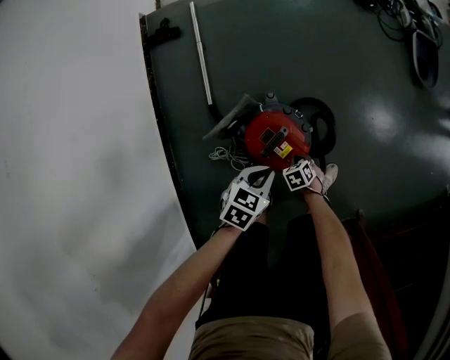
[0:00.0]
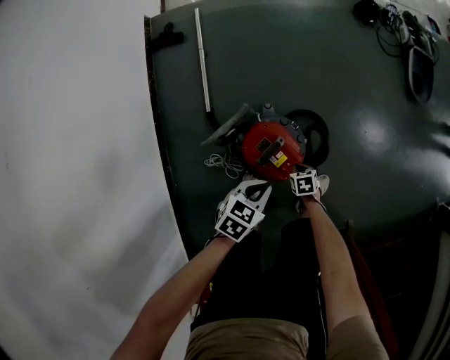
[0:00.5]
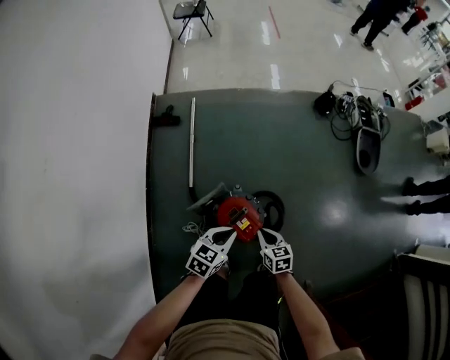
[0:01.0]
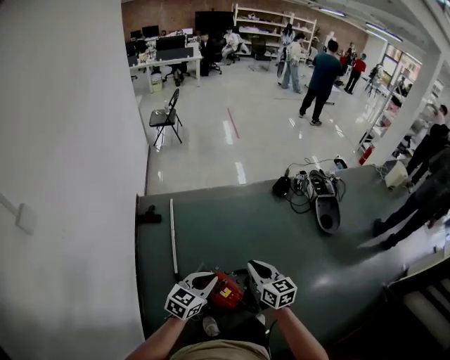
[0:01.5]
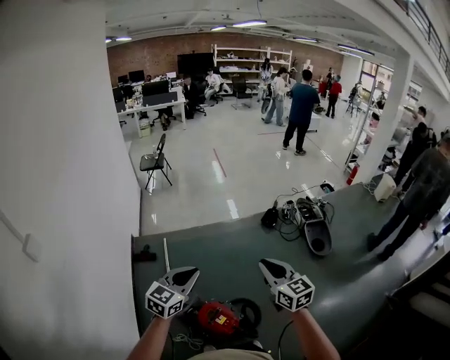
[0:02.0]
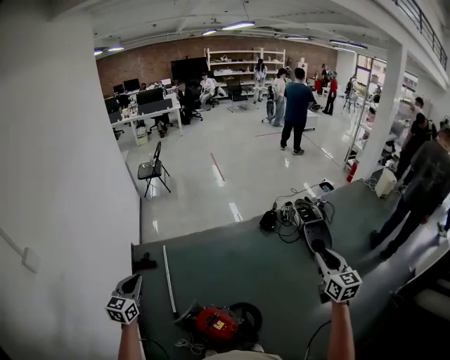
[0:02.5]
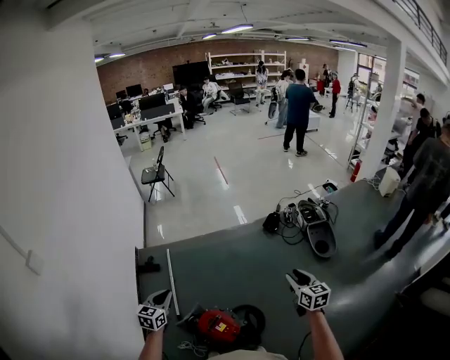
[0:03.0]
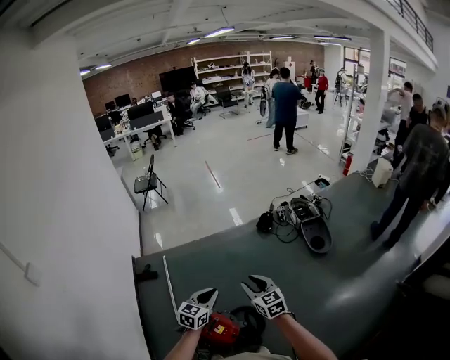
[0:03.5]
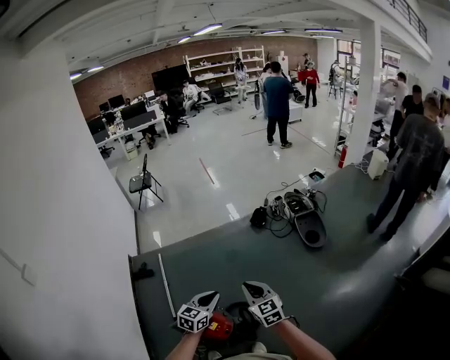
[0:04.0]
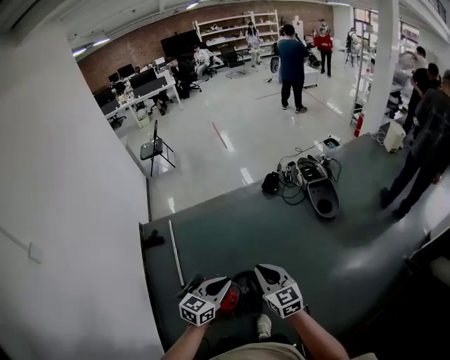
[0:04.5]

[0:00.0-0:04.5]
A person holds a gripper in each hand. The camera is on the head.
0:00.0 to 0:02.0: The two grippers go about 70 cm upward. The right gripper tilts its fingers approximately 70 degrees upward; the left gripper tips its fingers upward by roughly 40 degrees.
0:02.0 to 0:04.5: The right gripper swings left and right, approximately 25 cm each way, with 2 reversals, and opens, then closes again. The left gripper heads to the right, covering some 30 cm.

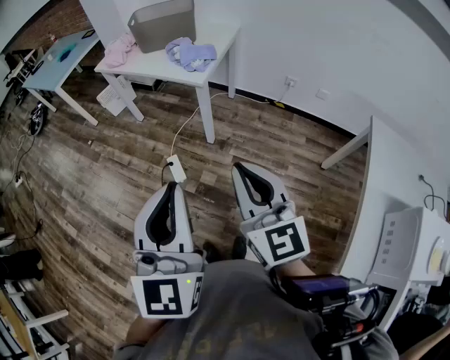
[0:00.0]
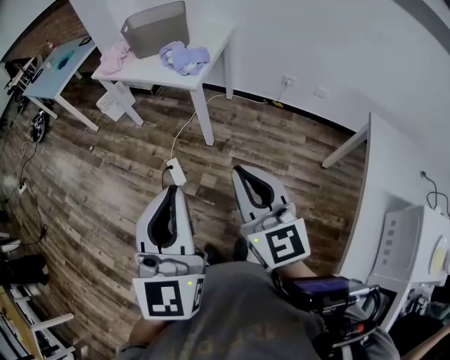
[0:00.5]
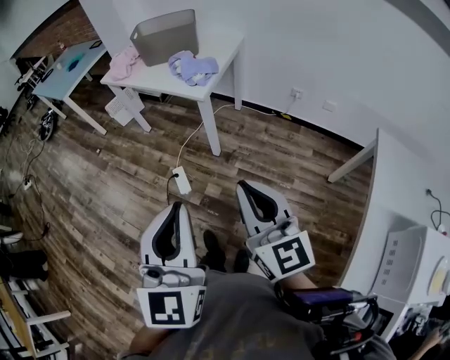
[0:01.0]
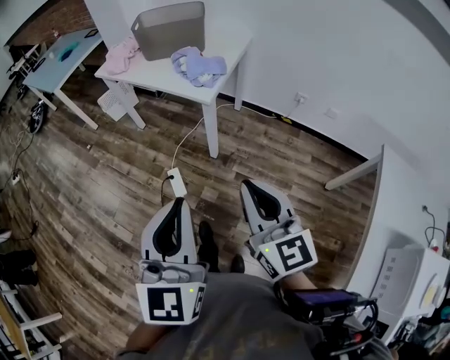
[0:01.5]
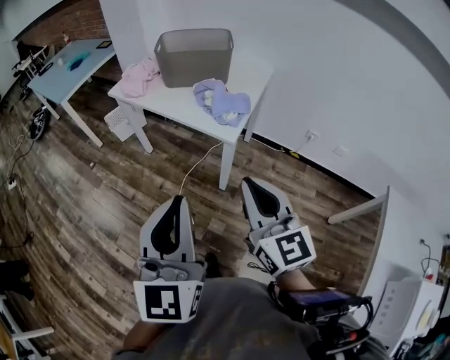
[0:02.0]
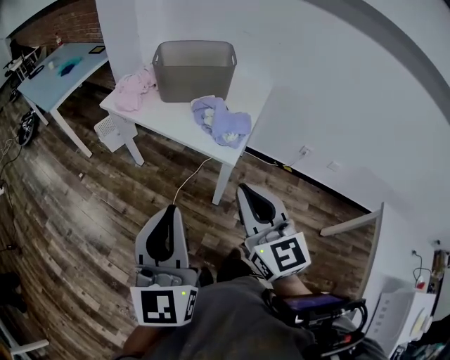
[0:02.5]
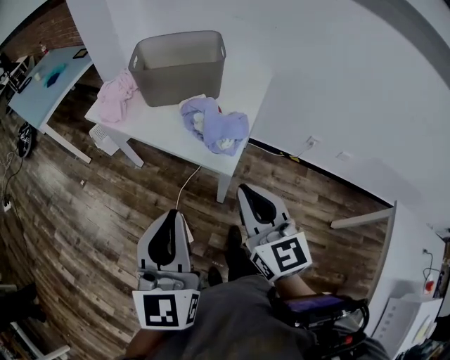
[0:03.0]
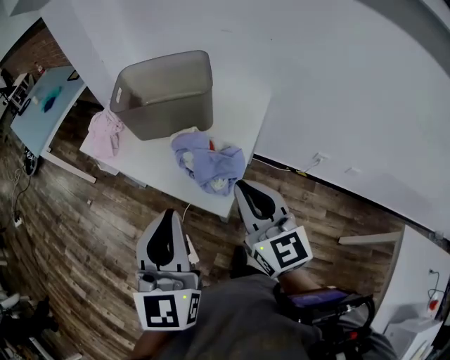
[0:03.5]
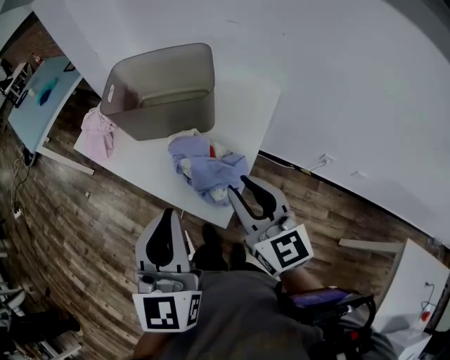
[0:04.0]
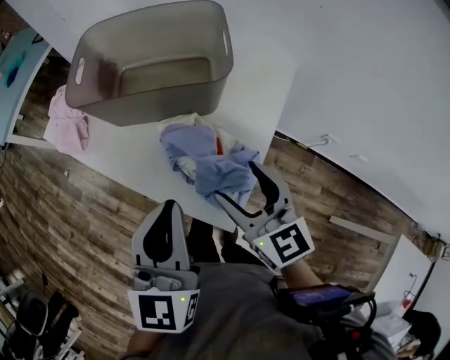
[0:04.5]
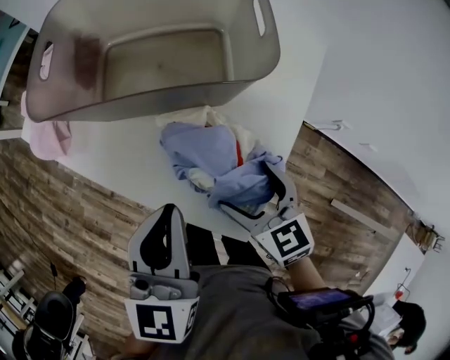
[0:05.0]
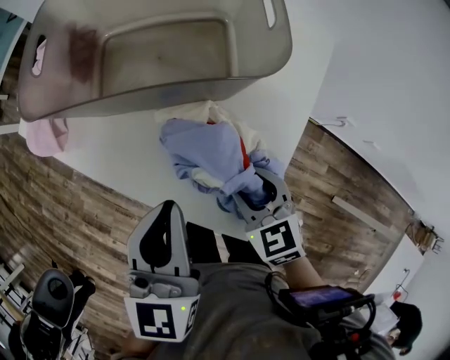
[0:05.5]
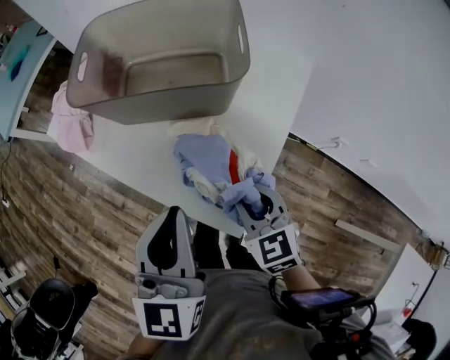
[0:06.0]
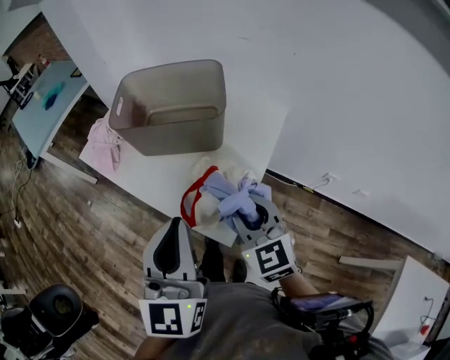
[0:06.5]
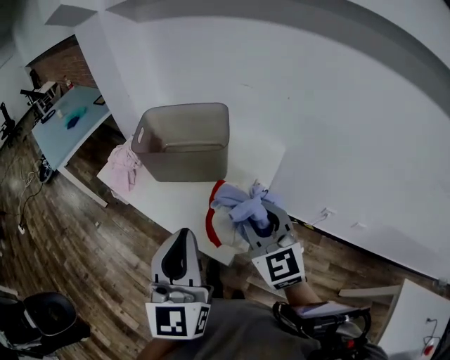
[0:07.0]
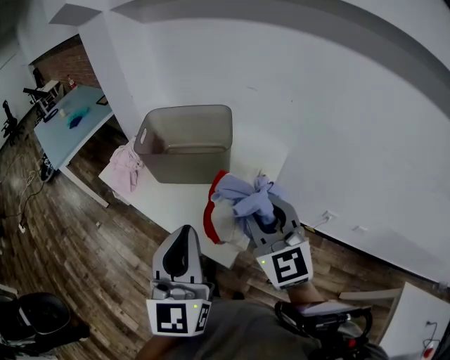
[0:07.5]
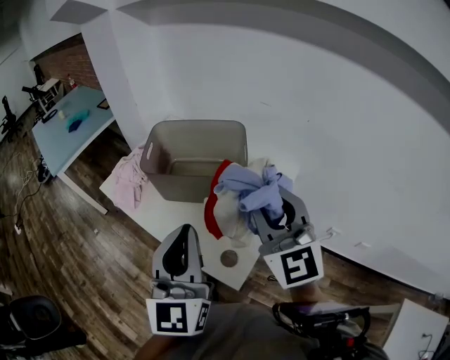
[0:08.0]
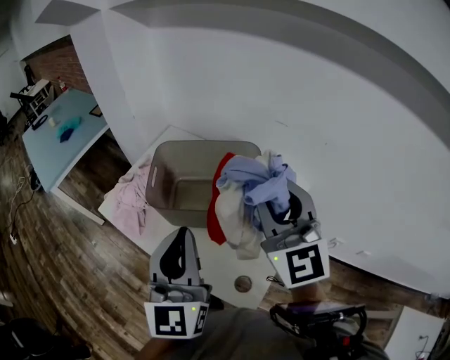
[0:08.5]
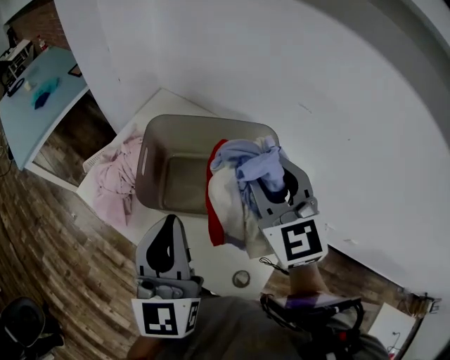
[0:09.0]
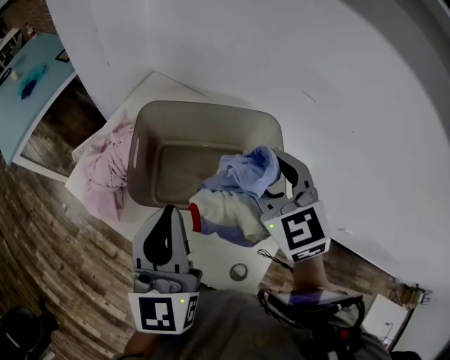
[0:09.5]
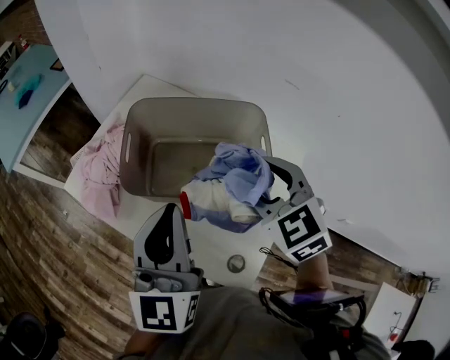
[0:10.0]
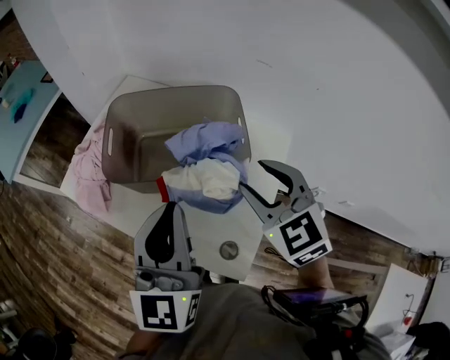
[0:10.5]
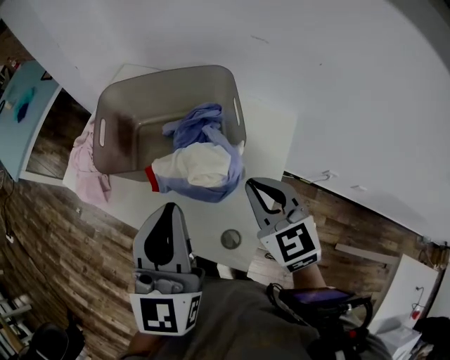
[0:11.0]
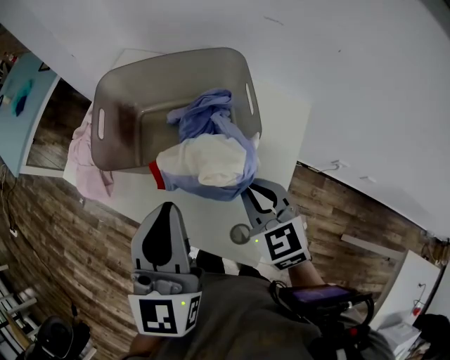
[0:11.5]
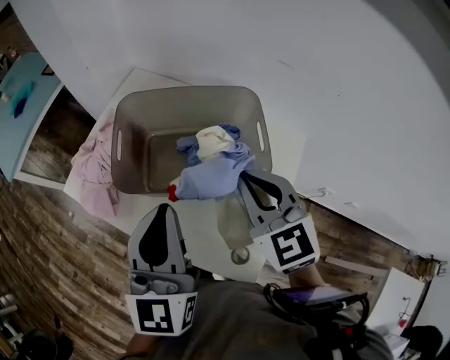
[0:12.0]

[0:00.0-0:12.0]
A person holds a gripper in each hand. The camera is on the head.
0:00.0 to 0:02.0: The grippers both shift forward by roughly 25 cm.
0:02.0 to 0:04.0: The grippers both shift forward by about 35 cm.
0:04.0 to 0:06.0: The right gripper moves downward, roughly 20 cm, points its fingers roughly 30 degrees further downward, and opens, then closes once more. Meanwhile the left gripper is displaced forward and downward by about 15 cm.
0:06.0 to 0:08.0: The right gripper goes some 30 cm upward, and points its fingers about 40 degrees further upward, while the left gripper moves upward, roughly 15 cm, and turns by about 20 degrees.
0:08.0 to 0:10.0: The right gripper goes approximately 20 cm forward and downward, and tips its fingers downward by some 40 degrees; the left gripper shifts approximately 20 cm forward.
0:10.0 to 0:12.0: The right gripper moves about 10 cm downward and comes back, and closes its fingers.

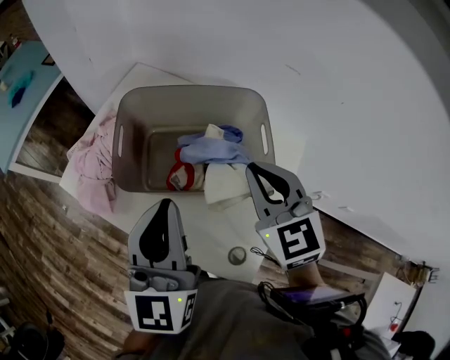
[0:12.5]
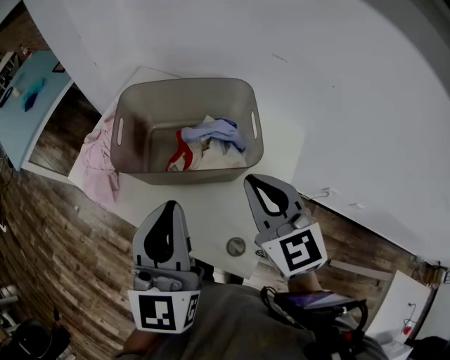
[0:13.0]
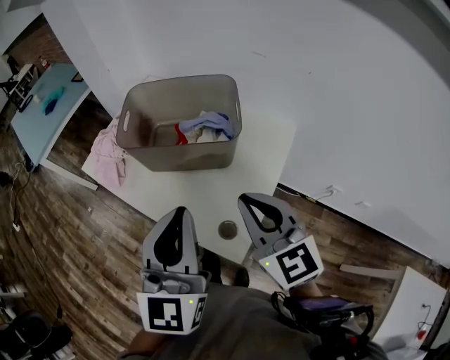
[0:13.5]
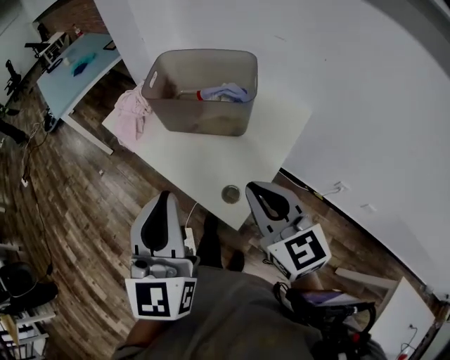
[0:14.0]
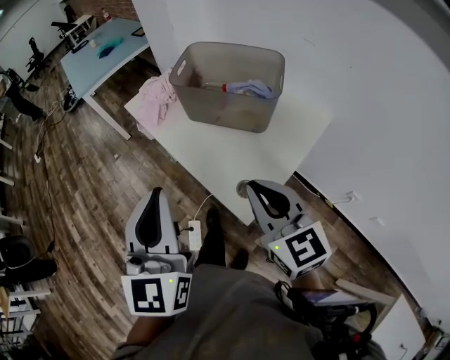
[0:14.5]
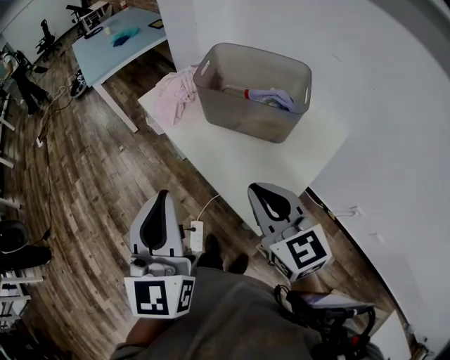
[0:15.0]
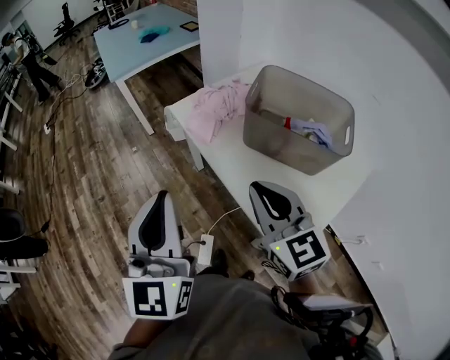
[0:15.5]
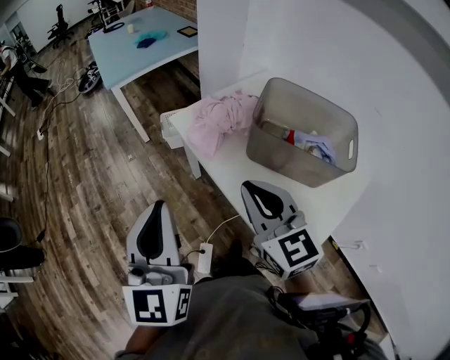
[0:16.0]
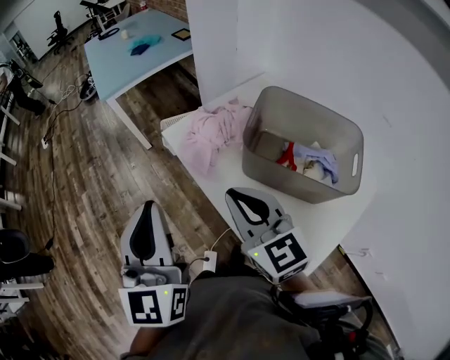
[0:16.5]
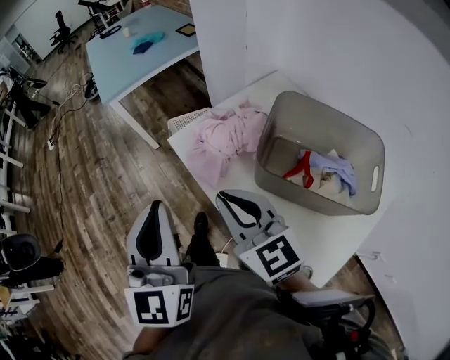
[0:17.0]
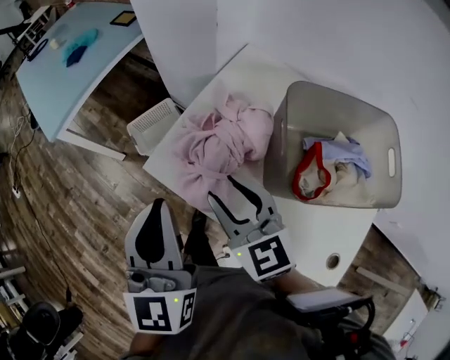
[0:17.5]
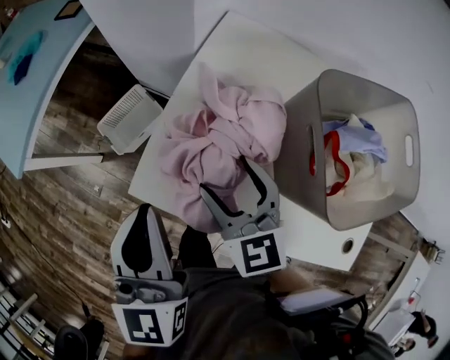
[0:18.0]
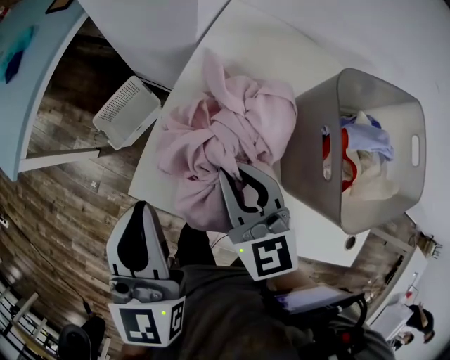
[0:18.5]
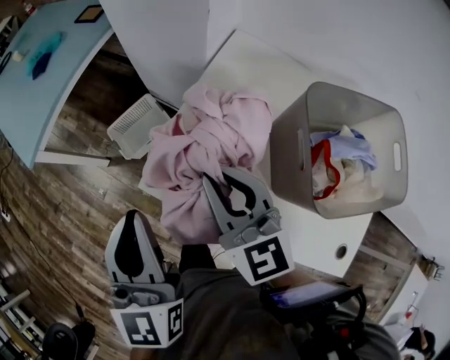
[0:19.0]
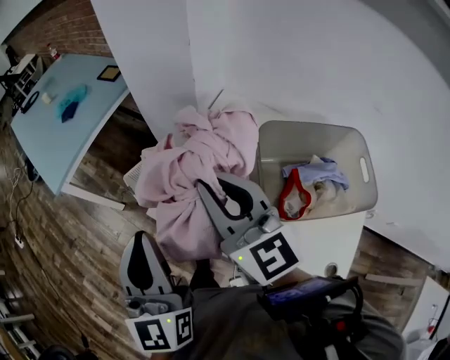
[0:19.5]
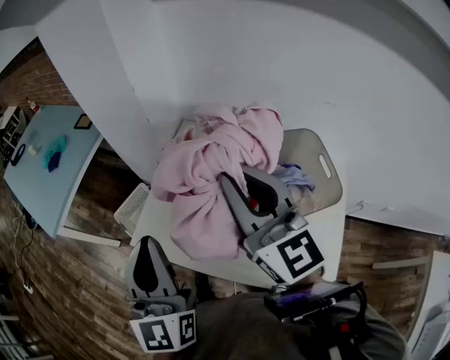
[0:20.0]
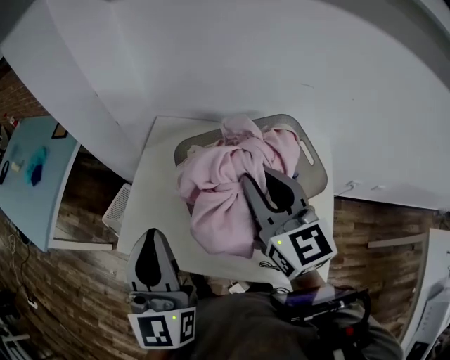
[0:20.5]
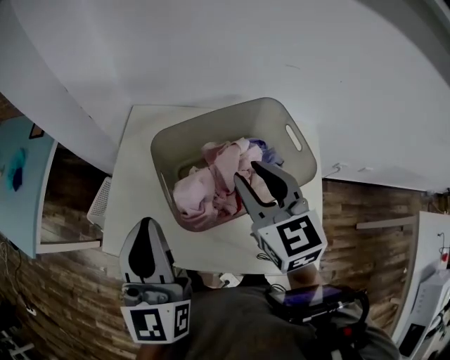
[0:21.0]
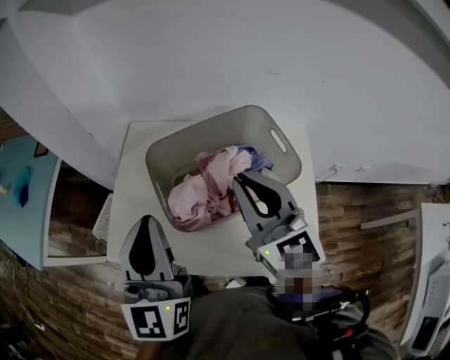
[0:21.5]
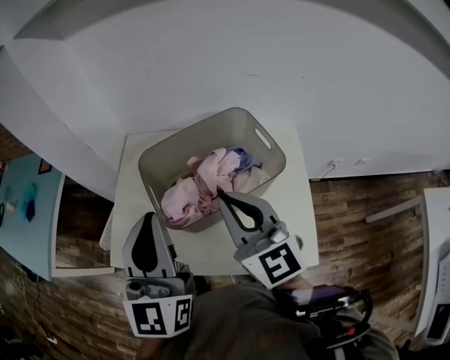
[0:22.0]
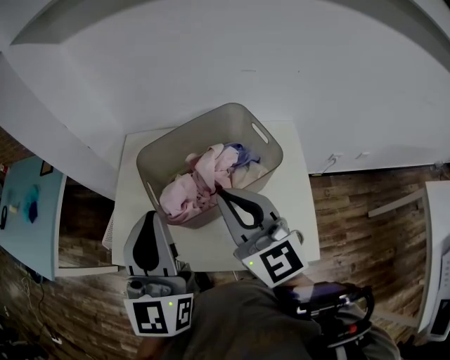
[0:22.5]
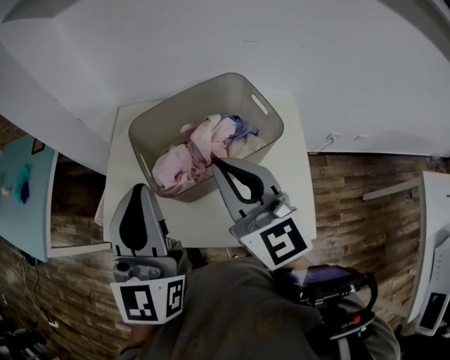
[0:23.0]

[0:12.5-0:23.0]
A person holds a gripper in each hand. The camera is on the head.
0:12.5 to 0:14.5: The two grippers go about 30 cm backward. The left gripper rotates approximately 30 degrees; the right gripper rotates about 30 degrees.
0:14.5 to 0:16.5: The grippers both shift forward and to the left by about 30 cm.
0:16.5 to 0:19.0: The right gripper shifts by roughly 30 cm, swivels roughly 30 degrees, and opens and closes again; the left gripper ends up about 35 cm from where it was, and rotates approximately 30 degrees.
0:19.0 to 0:21.0: The left gripper changes place by approximately 25 cm, and rotates about 20 degrees, while the right gripper changes place by some 35 cm, and rotates approximately 30 degrees.
0:21.0 to 0:23.0: The left gripper heads to the right and upward, covering approximately 10 cm. The right gripper is displaced backward and upward by some 10 cm, and changes its angle by approximately 20 degrees.
